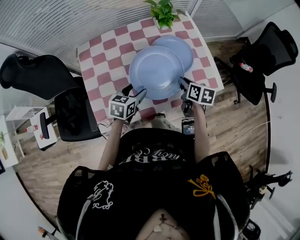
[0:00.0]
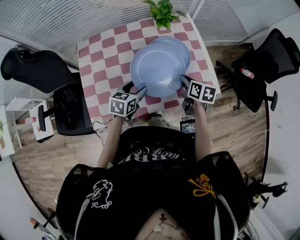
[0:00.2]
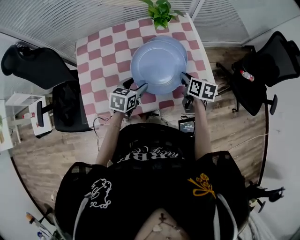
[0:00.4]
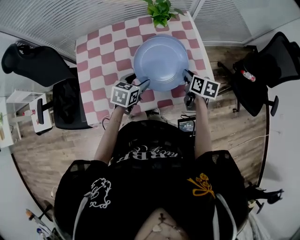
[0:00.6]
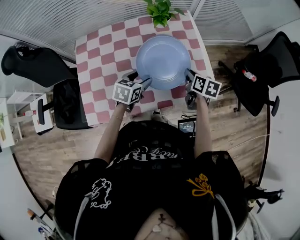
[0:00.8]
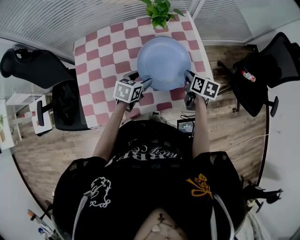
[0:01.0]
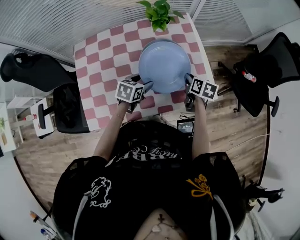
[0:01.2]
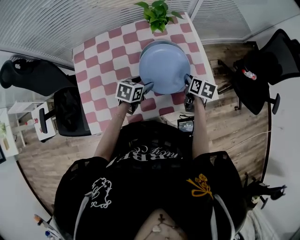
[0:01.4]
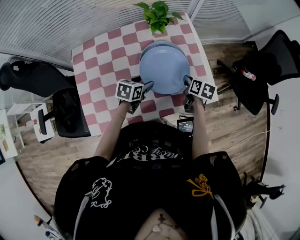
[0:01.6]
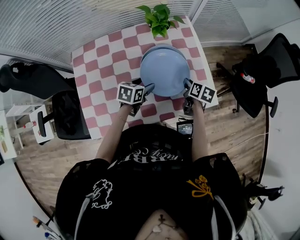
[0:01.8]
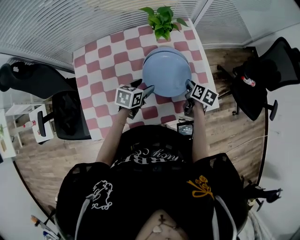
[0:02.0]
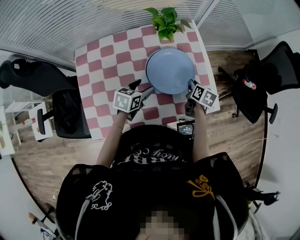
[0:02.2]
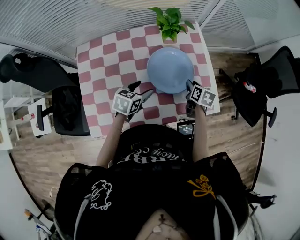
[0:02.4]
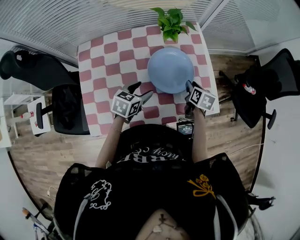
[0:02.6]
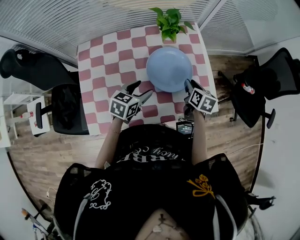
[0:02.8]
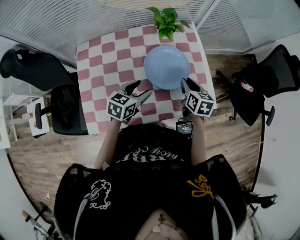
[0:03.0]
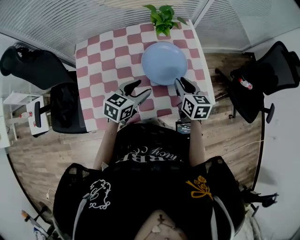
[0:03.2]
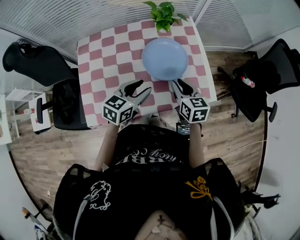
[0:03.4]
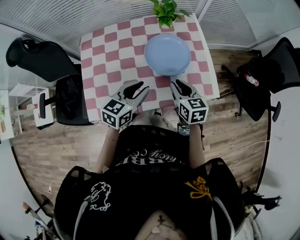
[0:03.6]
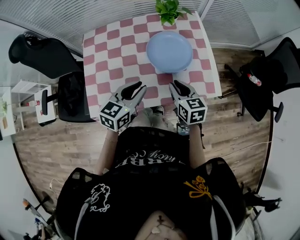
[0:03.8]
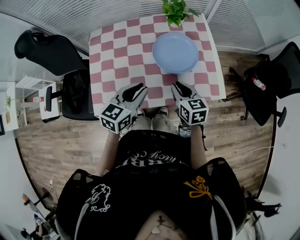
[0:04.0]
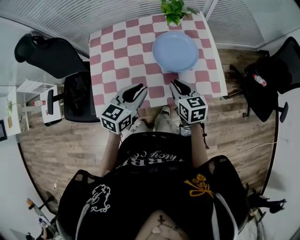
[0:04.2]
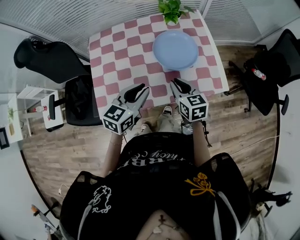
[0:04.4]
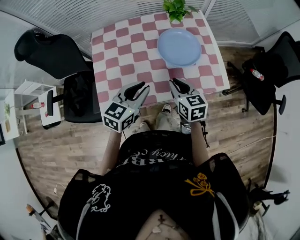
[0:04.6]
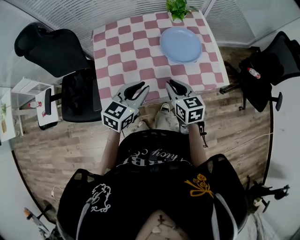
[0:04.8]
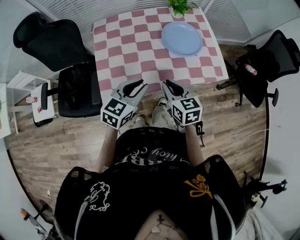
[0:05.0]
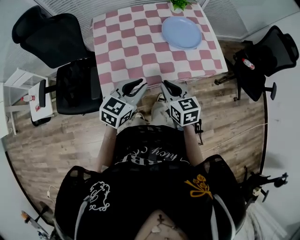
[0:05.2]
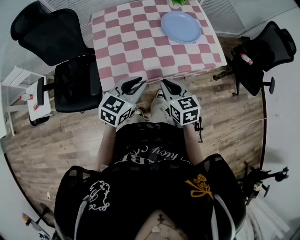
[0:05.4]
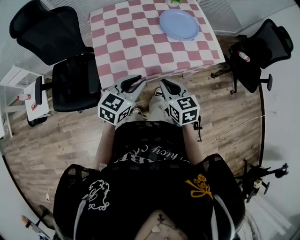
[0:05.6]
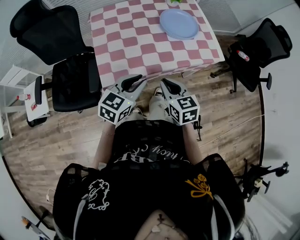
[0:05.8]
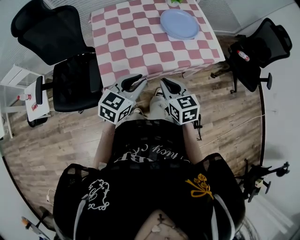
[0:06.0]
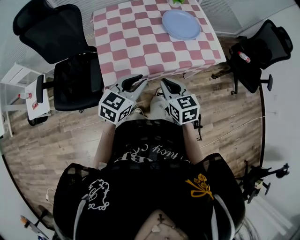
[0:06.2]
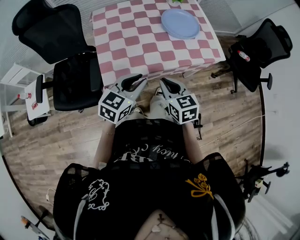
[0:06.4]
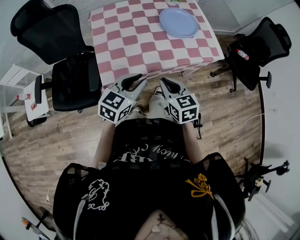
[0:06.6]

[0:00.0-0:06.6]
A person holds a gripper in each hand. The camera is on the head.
0:00.0 to 0:01.6: The grippers both shift forward and to the right by about 15 cm.
0:01.6 to 0:03.2: The right gripper heads upward, to the left and backward, covering roughly 15 cm, and rotates about 30 degrees, while the left gripper goes approximately 10 cm upward and backward, and turns by some 20 degrees.
0:03.2 to 0:05.0: The grippers both shift backward and to the left by approximately 25 cm. The left gripper closes.
0:05.0 to 0:06.6: The grippers both shift backward by roughly 10 cm.

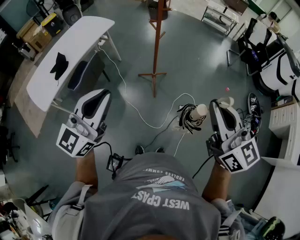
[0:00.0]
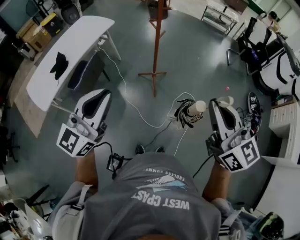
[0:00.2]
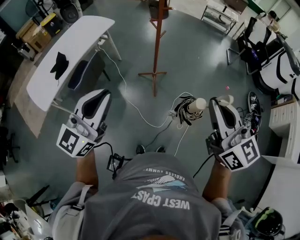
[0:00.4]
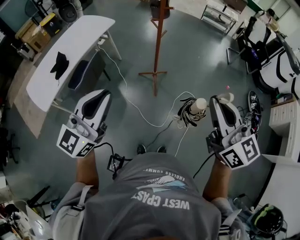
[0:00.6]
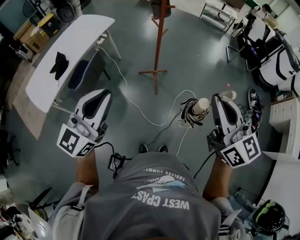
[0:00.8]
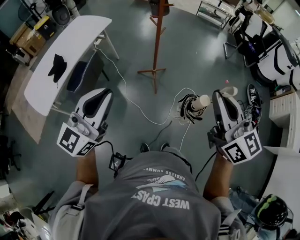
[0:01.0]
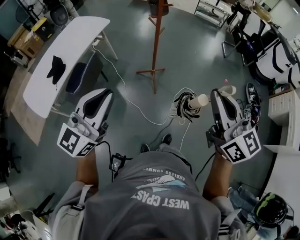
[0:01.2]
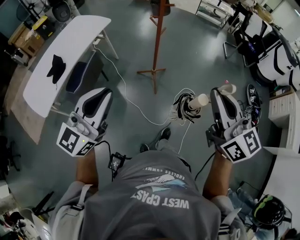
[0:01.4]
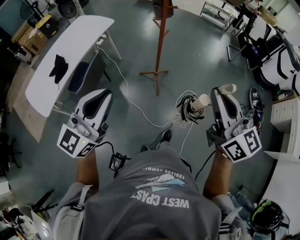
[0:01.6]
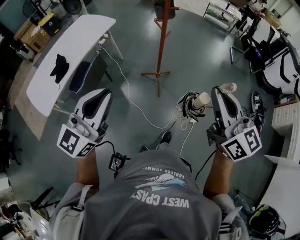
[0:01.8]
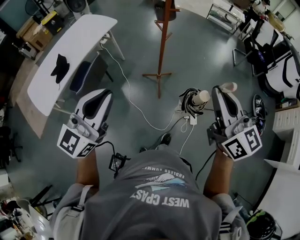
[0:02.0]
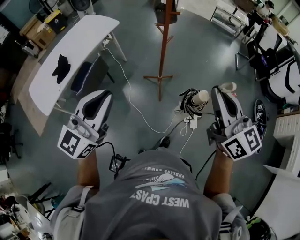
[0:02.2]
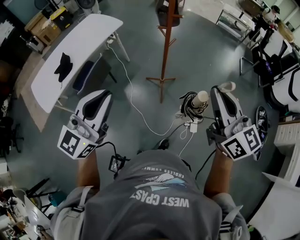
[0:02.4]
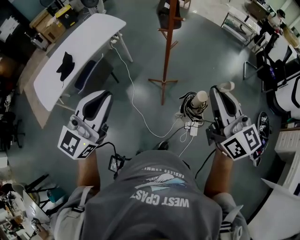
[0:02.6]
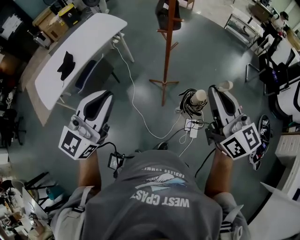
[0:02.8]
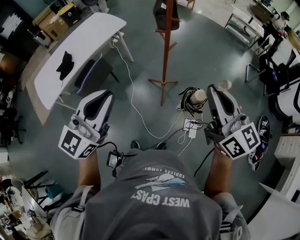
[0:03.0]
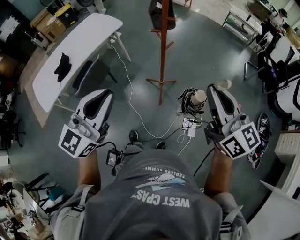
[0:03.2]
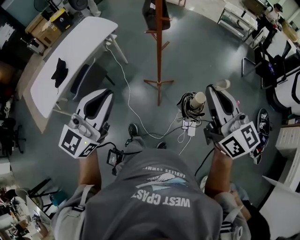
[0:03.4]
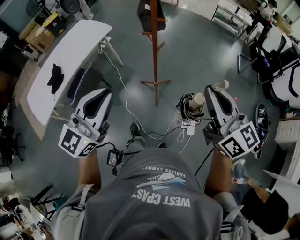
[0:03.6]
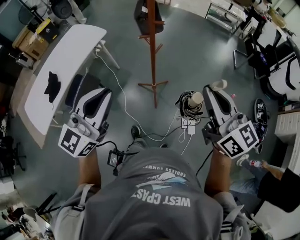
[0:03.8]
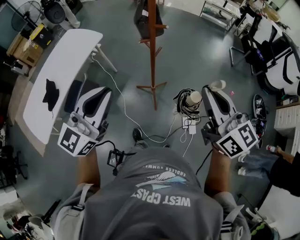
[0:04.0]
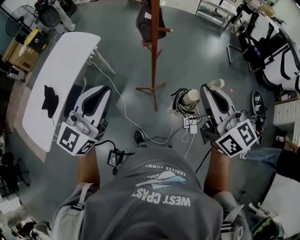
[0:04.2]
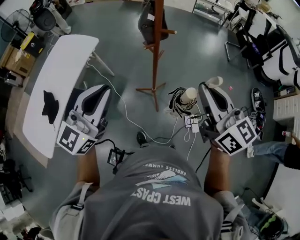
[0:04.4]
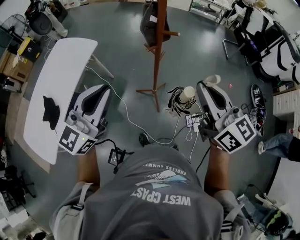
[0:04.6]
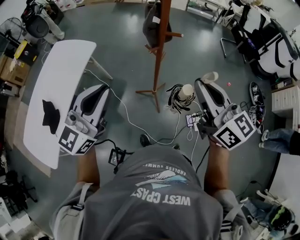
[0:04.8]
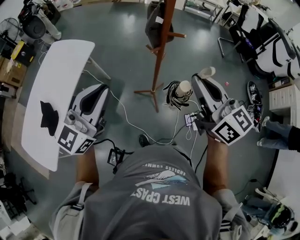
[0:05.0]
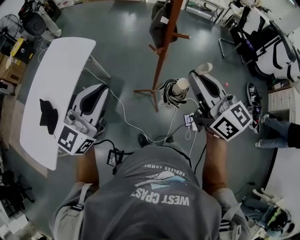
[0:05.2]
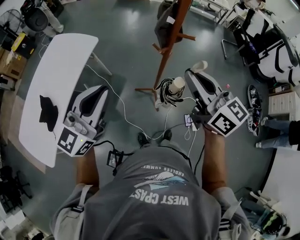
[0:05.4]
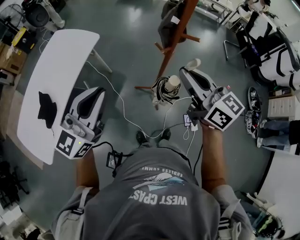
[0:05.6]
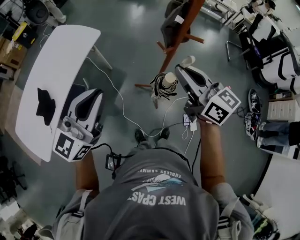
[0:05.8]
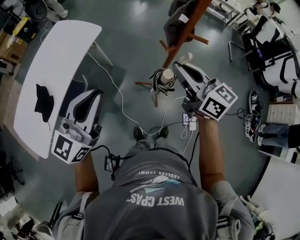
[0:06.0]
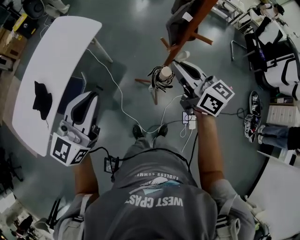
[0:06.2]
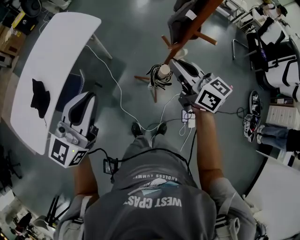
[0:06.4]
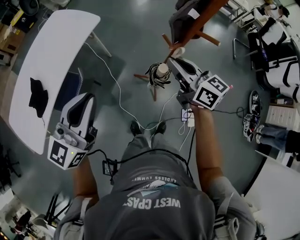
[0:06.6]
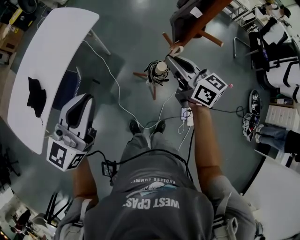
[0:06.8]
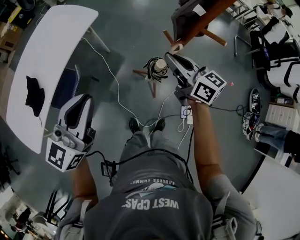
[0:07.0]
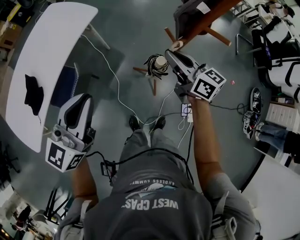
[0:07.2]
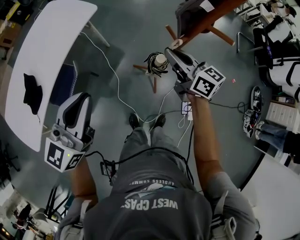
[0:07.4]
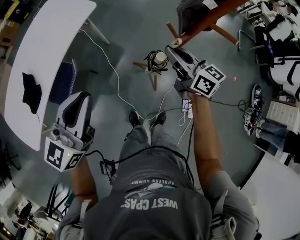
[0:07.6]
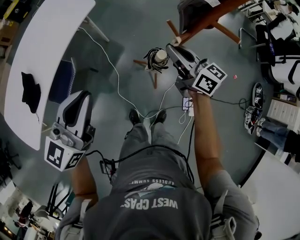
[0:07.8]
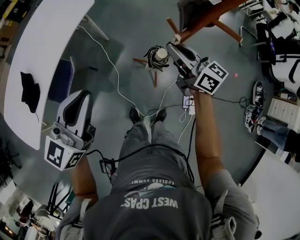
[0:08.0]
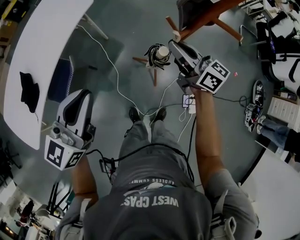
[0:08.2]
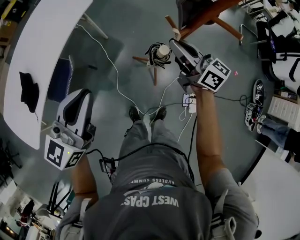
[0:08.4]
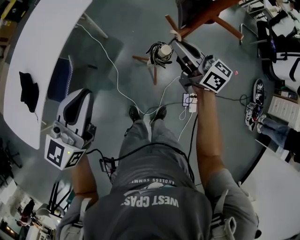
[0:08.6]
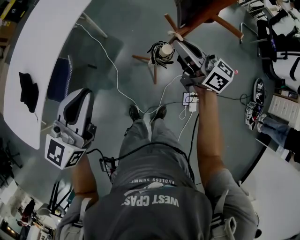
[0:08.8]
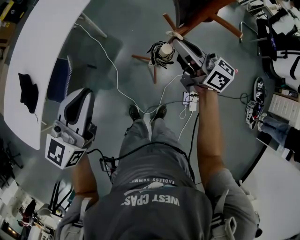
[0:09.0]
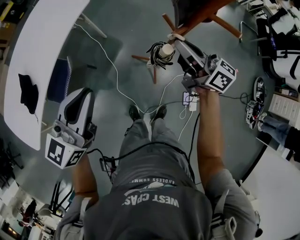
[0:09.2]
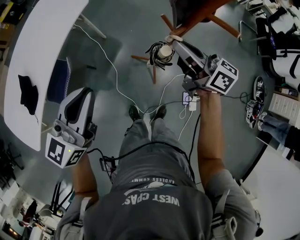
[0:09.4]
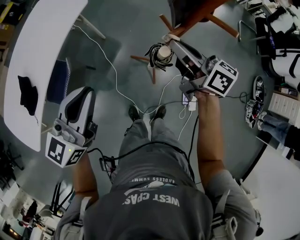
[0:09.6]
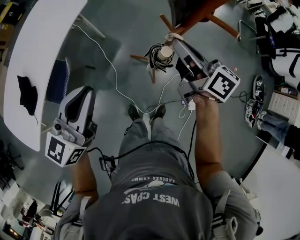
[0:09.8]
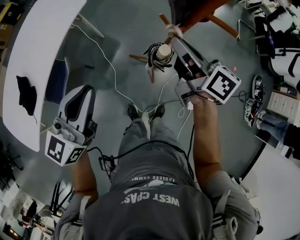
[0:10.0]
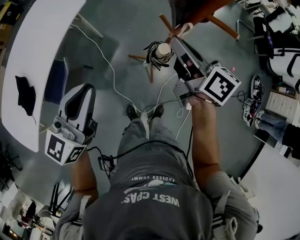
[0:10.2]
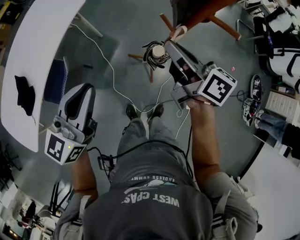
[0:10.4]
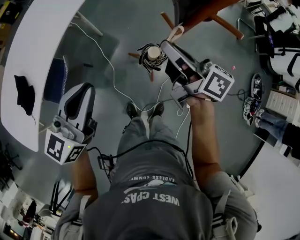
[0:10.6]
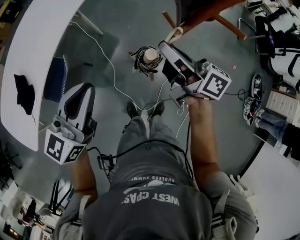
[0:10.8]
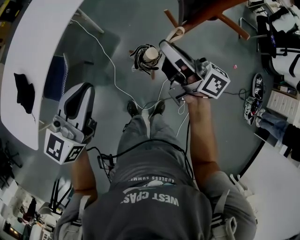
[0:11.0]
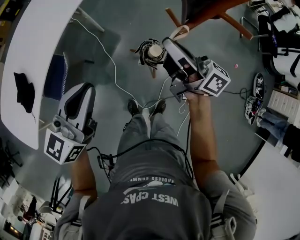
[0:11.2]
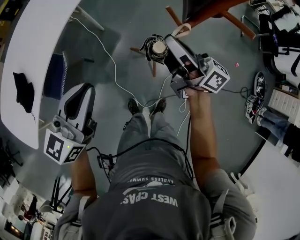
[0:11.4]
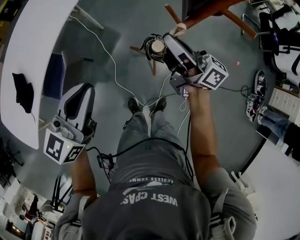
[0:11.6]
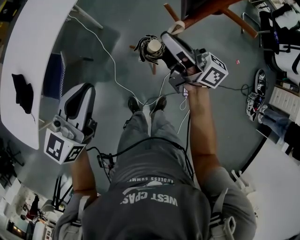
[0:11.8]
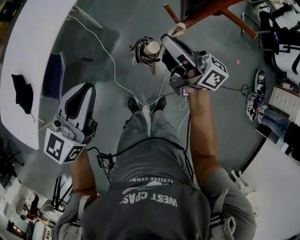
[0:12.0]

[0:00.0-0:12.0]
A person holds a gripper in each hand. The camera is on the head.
0:00.0 to 0:01.6: The left gripper changes place by some 5 cm. The right gripper ends up some 5 cm from where it was.
0:01.6 to 0:03.0: The two grippers go about 15 cm forward and to the right.
0:03.0 to 0:04.4: The right gripper is displaced to the left and forward by roughly 15 cm. The left gripper travels forward and to the left by approximately 20 cm.
0:04.4 to 0:06.0: The left gripper goes some 10 cm to the left and downward. The right gripper shifts some 20 cm to the left, forward and downward.
0:06.0 to 0:07.6: The left gripper moves downward, roughly 10 cm; the right gripper travels downward and forward by about 20 cm.
0:07.6 to 0:09.0: The grippers stay close to where they were, moving slightly.
0:10.4 to 0:12.0: The right gripper rotates roughly 30 degrees.

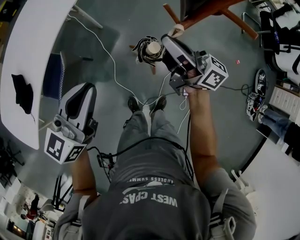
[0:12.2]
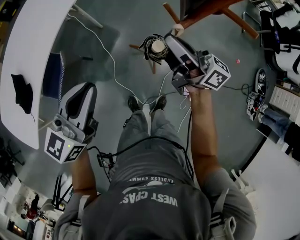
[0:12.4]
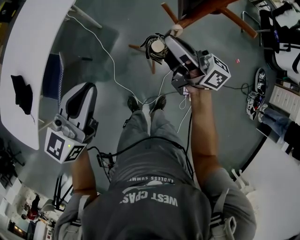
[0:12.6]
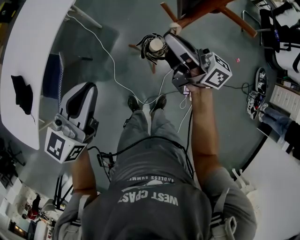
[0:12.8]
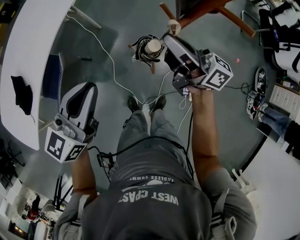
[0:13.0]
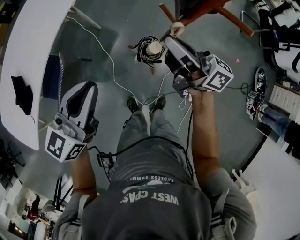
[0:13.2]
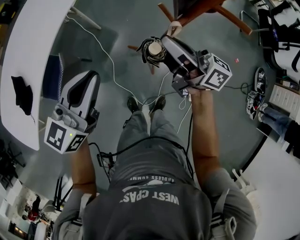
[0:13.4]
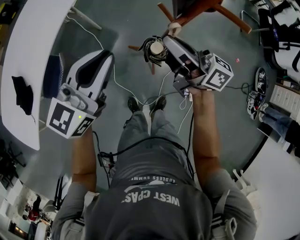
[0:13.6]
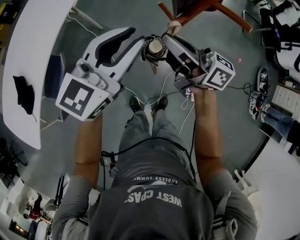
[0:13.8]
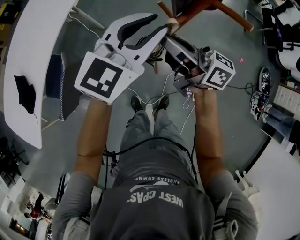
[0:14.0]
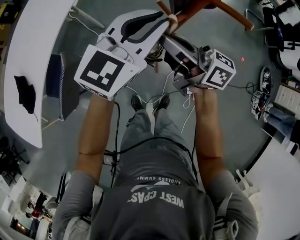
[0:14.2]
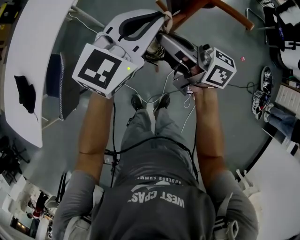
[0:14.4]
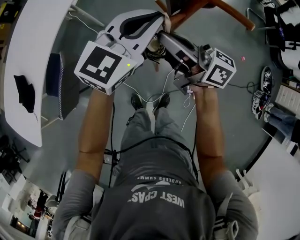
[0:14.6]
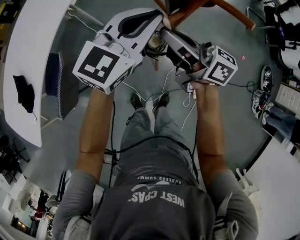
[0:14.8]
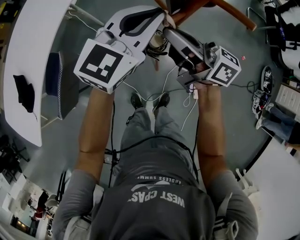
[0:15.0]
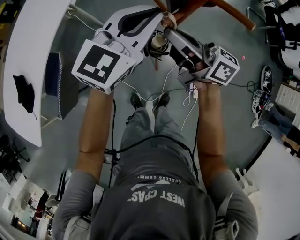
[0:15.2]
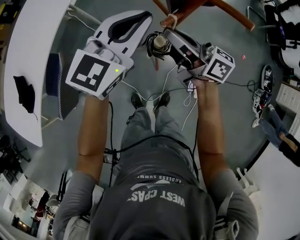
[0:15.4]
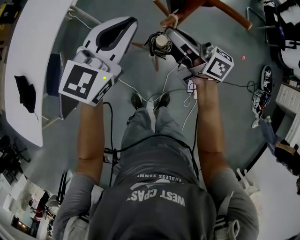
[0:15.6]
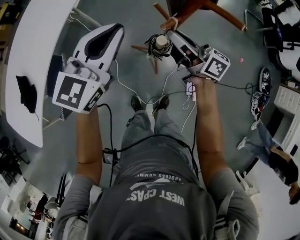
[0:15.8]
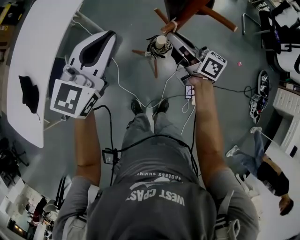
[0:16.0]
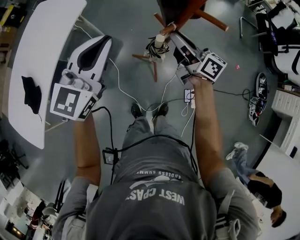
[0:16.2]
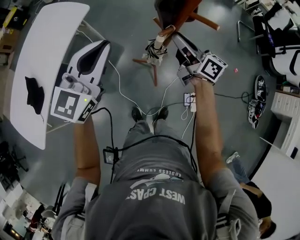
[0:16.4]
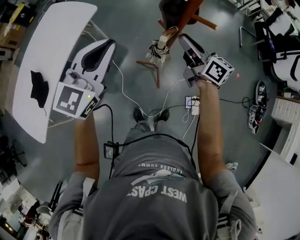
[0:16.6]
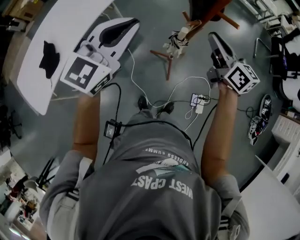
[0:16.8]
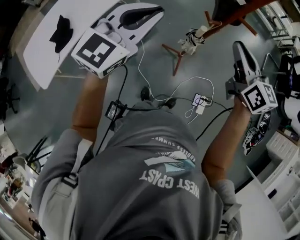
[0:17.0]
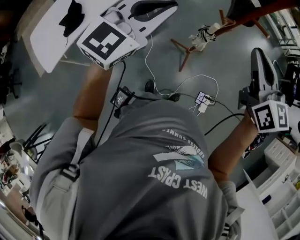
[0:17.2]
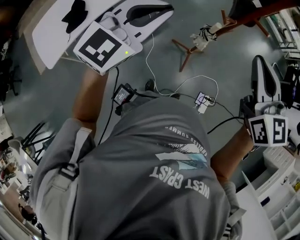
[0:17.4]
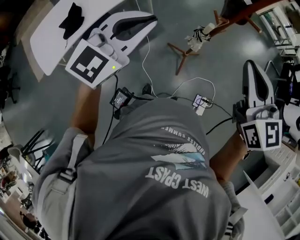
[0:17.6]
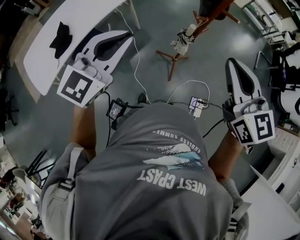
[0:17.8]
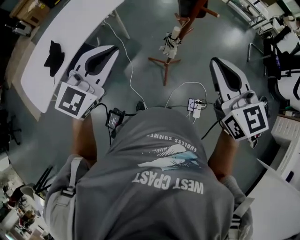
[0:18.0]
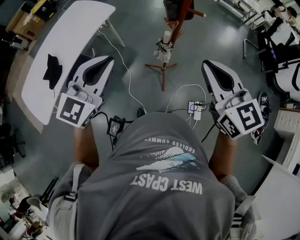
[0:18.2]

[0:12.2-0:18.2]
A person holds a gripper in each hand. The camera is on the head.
0:12.2 to 0:13.8: The left gripper heads to the right and forward, covering some 15 cm.
0:13.8 to 0:15.2: The left gripper travels to the right by some 5 cm.
0:15.2 to 0:16.6: The right gripper ends up about 5 cm from where it was, and changes its angle by about 20 degrees. Meanwhile the left gripper travels to the left, upward and backward by approximately 20 cm.
0:16.6 to 0:18.2: The left gripper shifts about 15 cm backward. The right gripper goes roughly 30 cm backward and upward, and swivels about 40 degrees.
